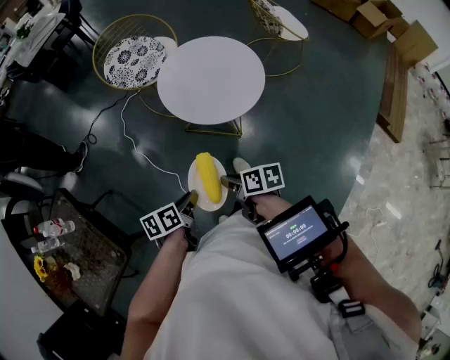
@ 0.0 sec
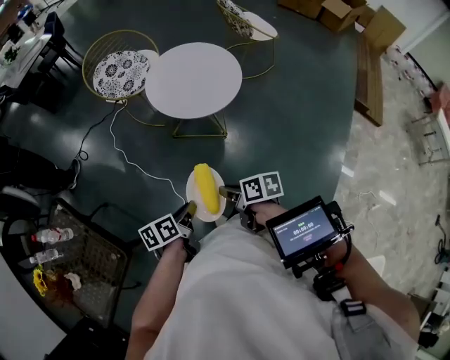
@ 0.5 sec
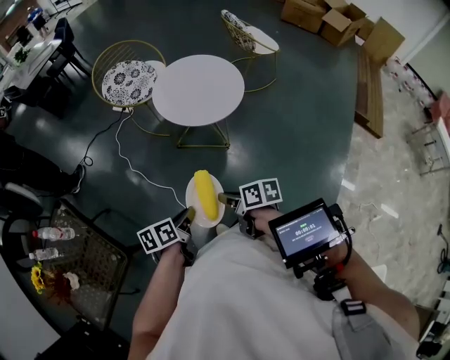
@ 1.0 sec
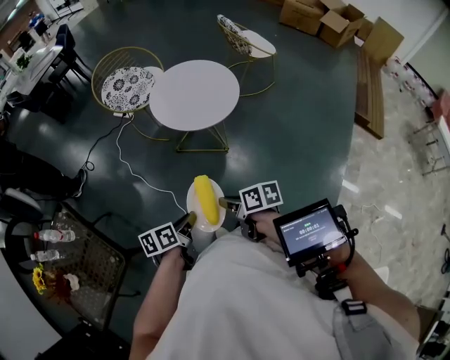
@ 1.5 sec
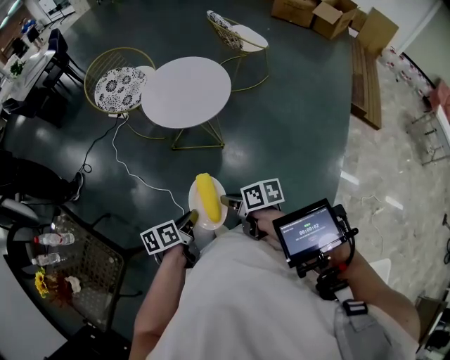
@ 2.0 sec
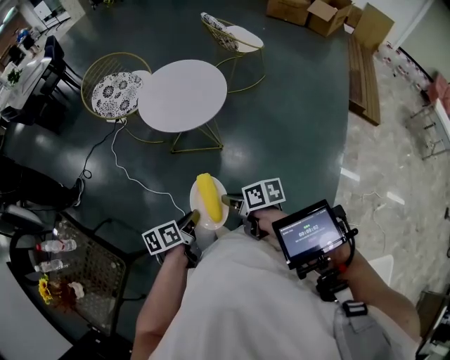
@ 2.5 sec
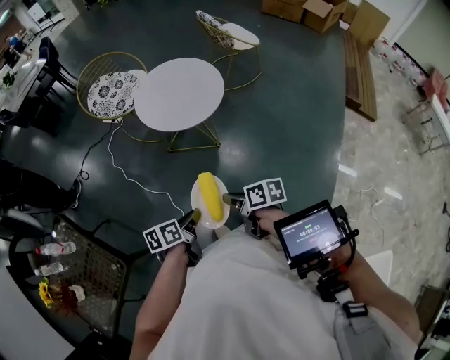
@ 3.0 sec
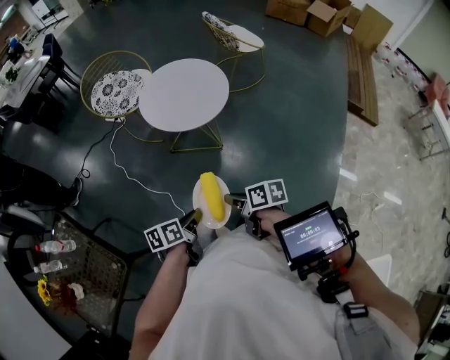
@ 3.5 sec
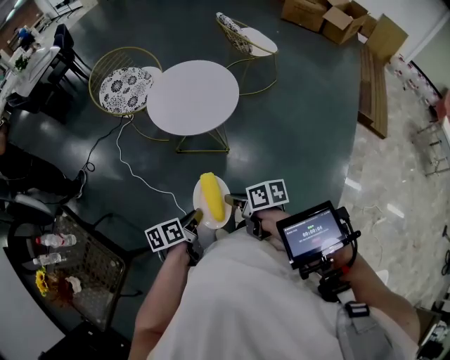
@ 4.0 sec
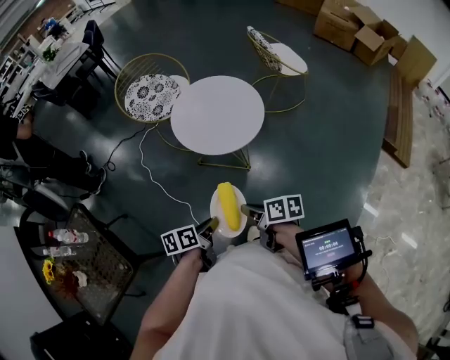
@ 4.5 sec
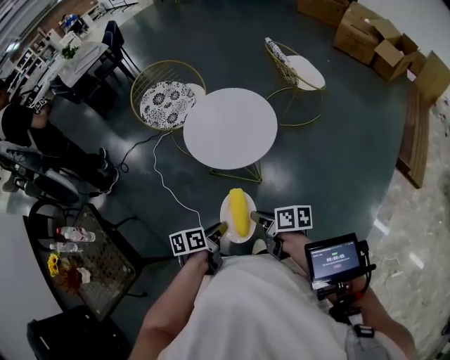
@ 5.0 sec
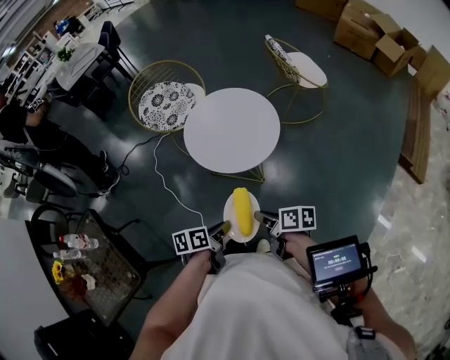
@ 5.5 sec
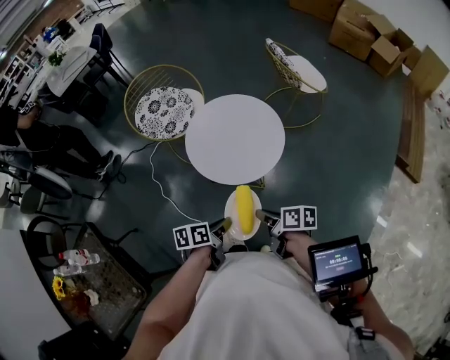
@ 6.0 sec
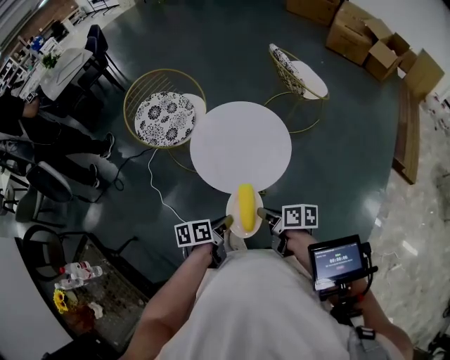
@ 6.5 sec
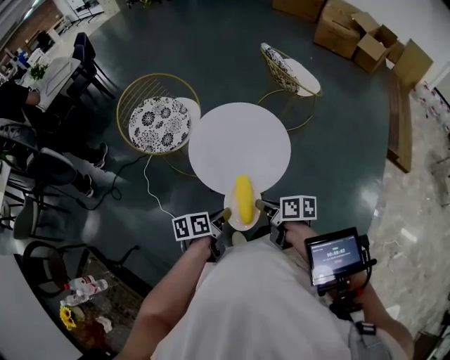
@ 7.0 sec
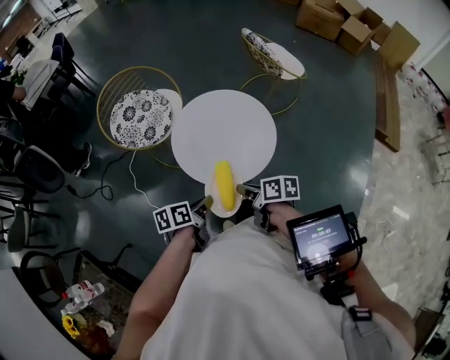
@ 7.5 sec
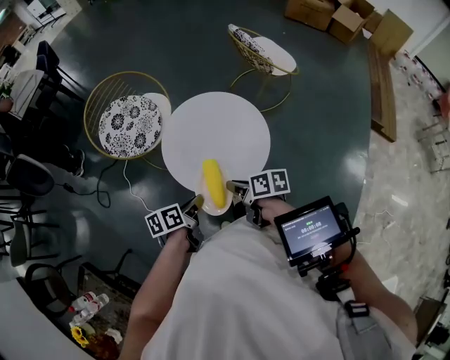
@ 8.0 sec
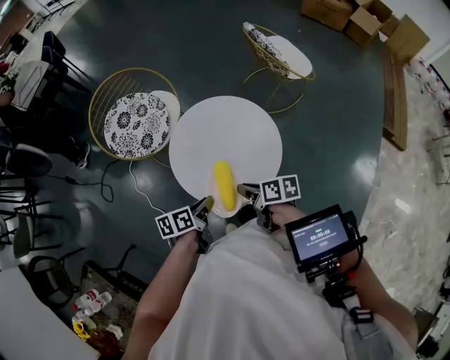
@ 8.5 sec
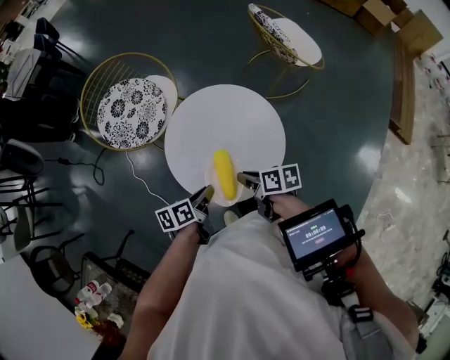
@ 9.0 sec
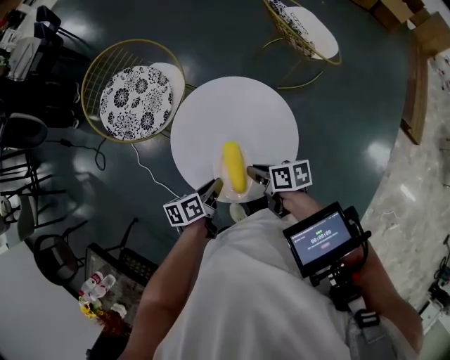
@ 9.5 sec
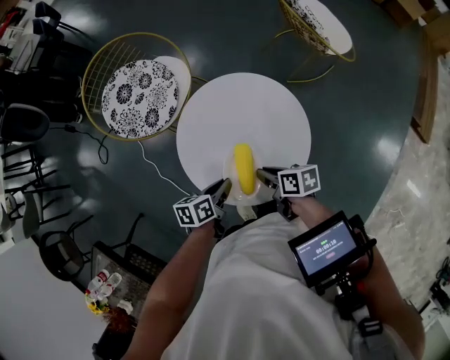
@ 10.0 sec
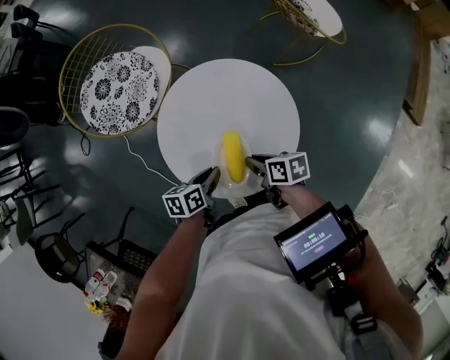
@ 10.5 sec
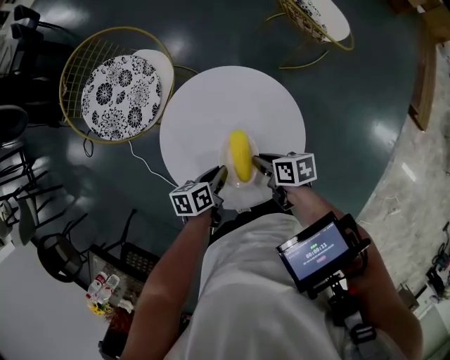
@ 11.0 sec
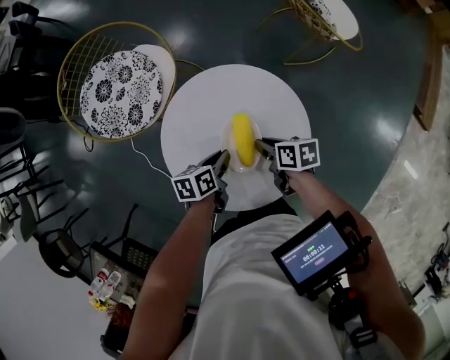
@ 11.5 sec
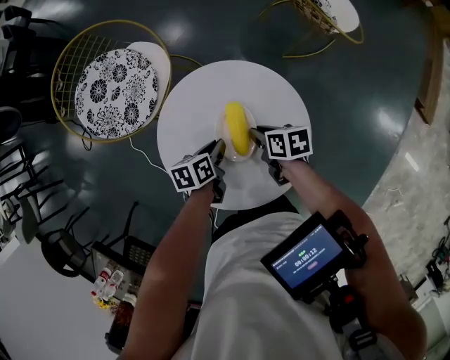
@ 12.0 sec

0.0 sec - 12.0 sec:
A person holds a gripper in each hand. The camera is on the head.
0.0 sec - 2.0 sec: The grippers both shift backward by about 15 cm.
2.0 sec - 4.0 sec: The right gripper moves roughly 5 cm.
4.0 sec - 6.0 sec: Both grippers move forward, approximately 20 cm.
6.0 sec - 8.0 sec: The grippers both shift forward and to the left by about 20 cm.
8.0 sec - 10.0 sec: The two grippers go some 15 cm forward and downward.
10.0 sec - 12.0 sec: The two grippers go approximately 15 cm forward and downward.

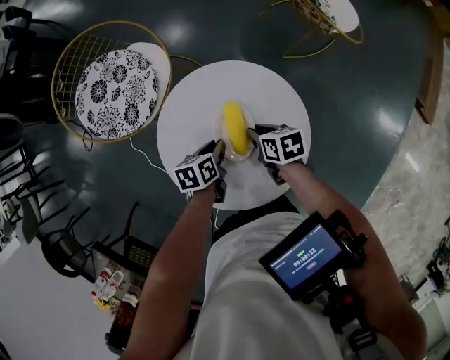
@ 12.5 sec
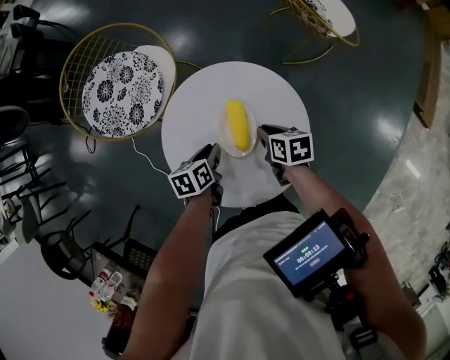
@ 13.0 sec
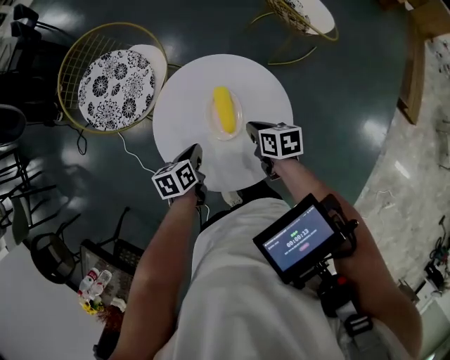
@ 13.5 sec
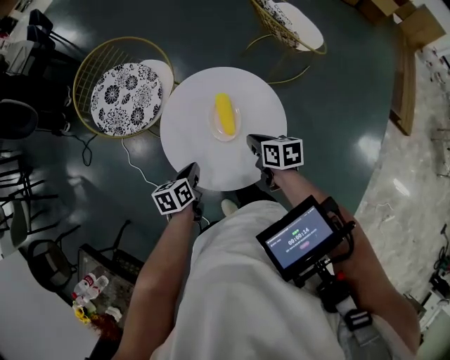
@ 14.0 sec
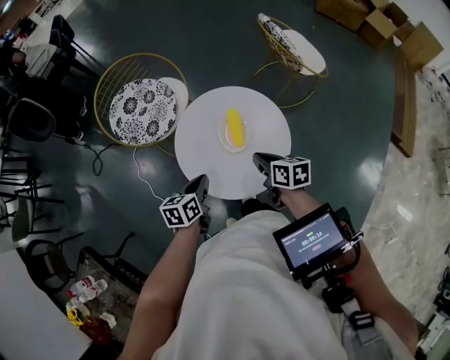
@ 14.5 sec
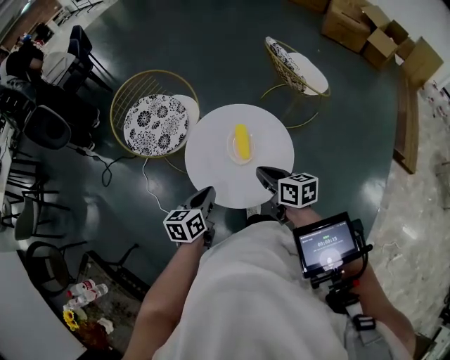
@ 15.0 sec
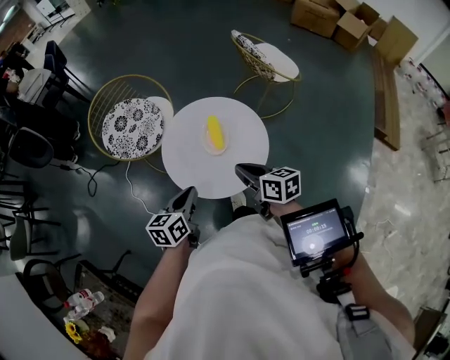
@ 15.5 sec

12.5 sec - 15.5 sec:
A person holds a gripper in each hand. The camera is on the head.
12.5 sec - 14.0 sec: The right gripper is displaced upward and backward by roughly 15 cm. Meanwhile the left gripper is displaced backward, upward and to the left by some 20 cm.
14.0 sec - 15.5 sec: Both grippers travel together upward and backward, roughly 15 cm. The right gripper changes its angle by some 20 degrees. Meanwhile the left gripper swivels roughly 20 degrees.

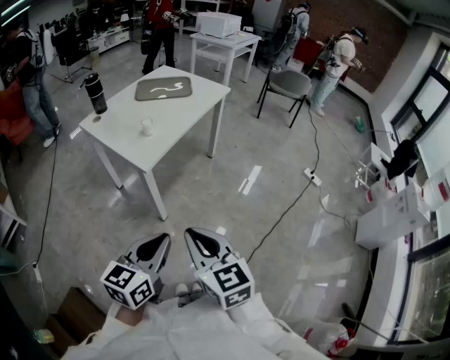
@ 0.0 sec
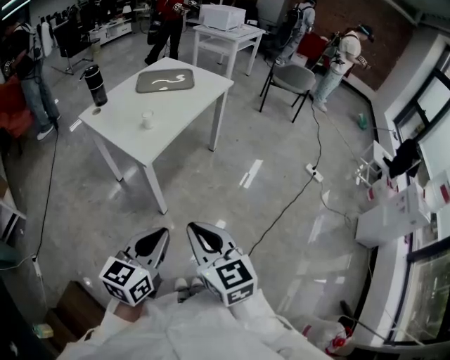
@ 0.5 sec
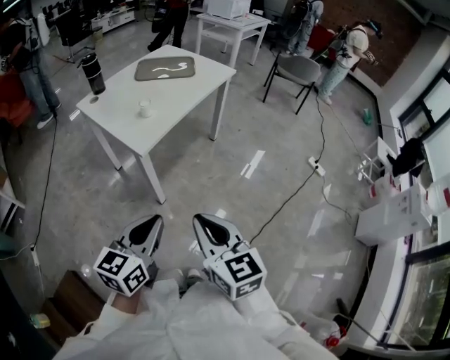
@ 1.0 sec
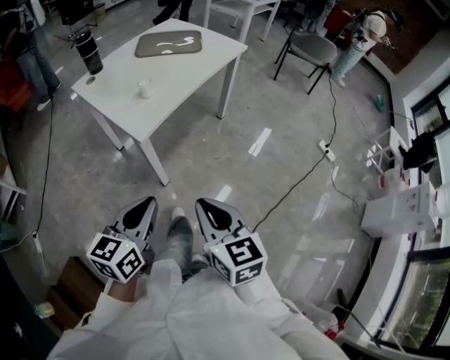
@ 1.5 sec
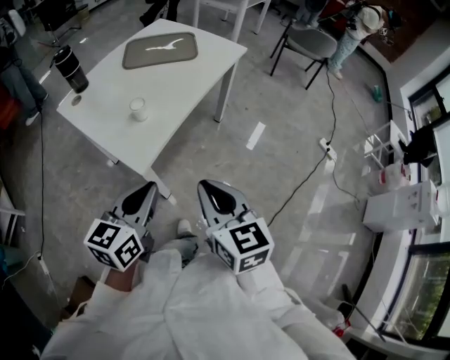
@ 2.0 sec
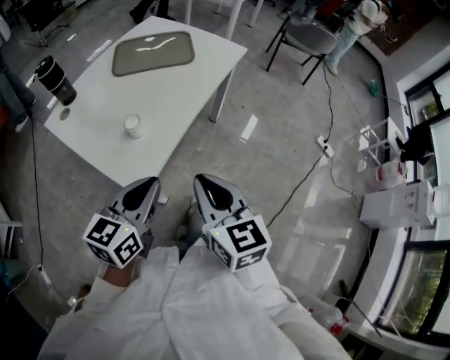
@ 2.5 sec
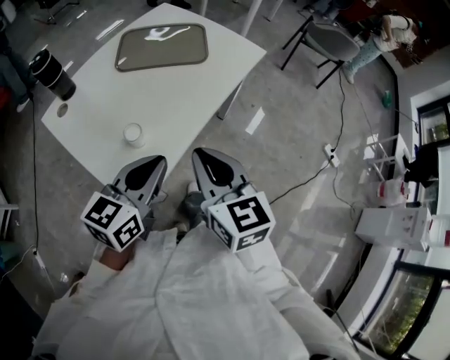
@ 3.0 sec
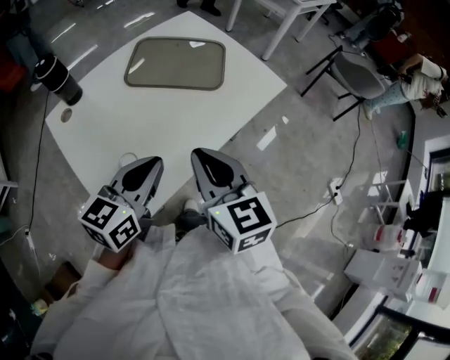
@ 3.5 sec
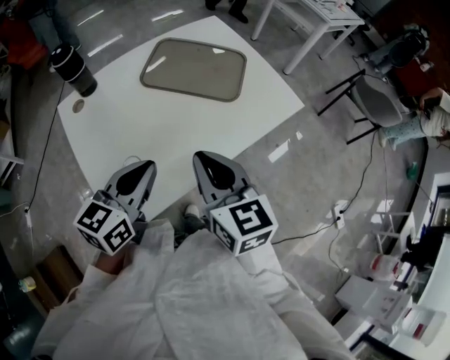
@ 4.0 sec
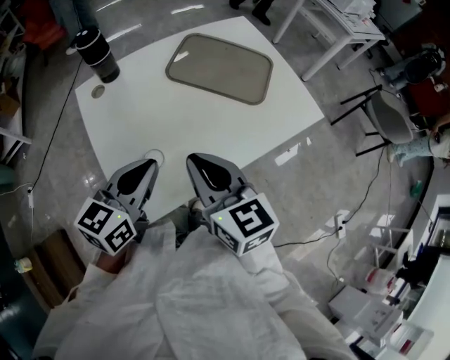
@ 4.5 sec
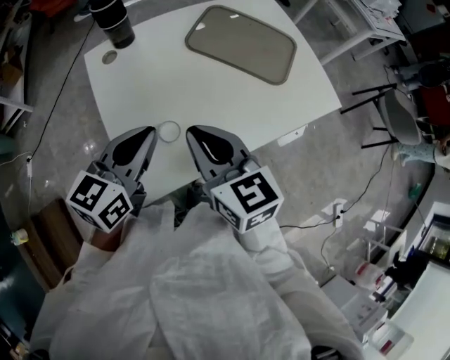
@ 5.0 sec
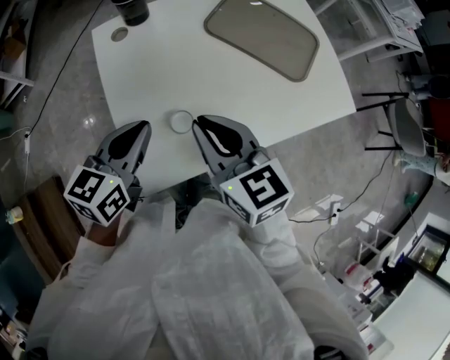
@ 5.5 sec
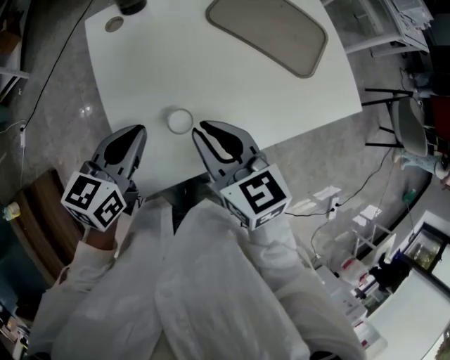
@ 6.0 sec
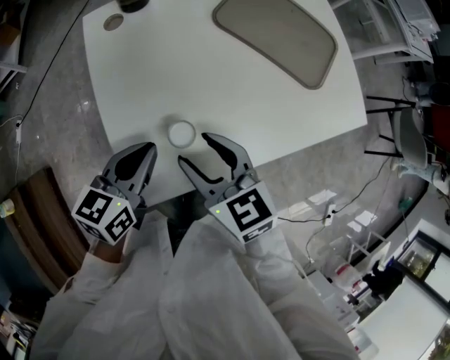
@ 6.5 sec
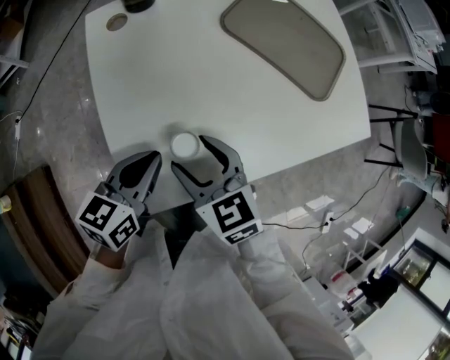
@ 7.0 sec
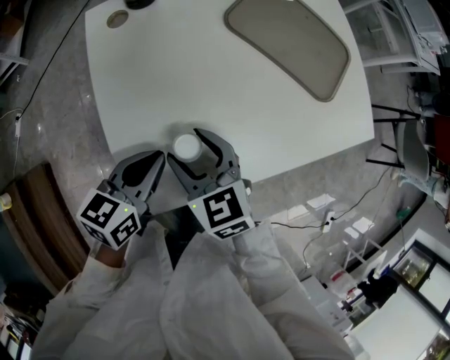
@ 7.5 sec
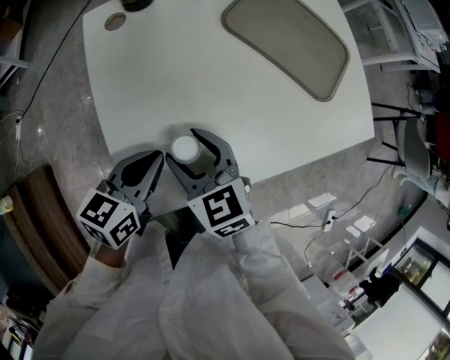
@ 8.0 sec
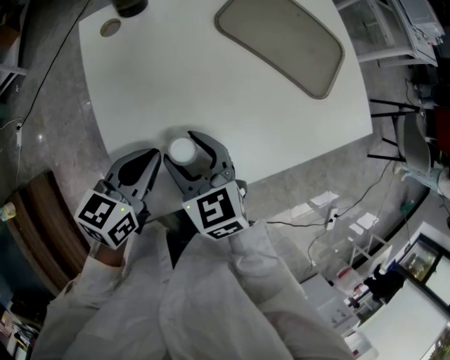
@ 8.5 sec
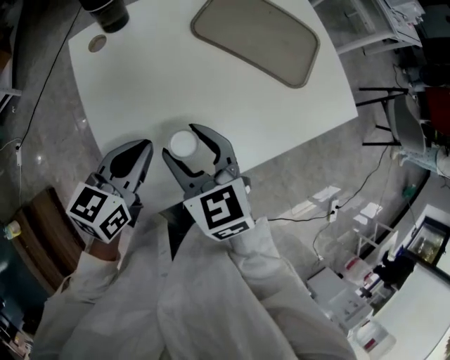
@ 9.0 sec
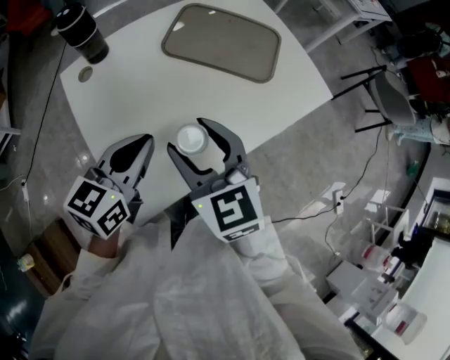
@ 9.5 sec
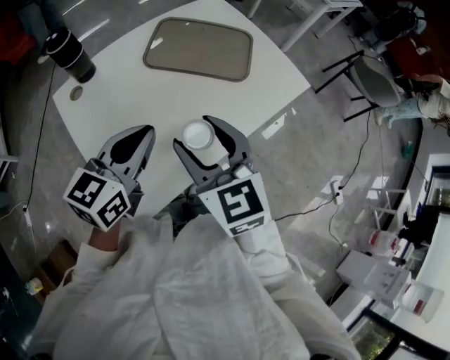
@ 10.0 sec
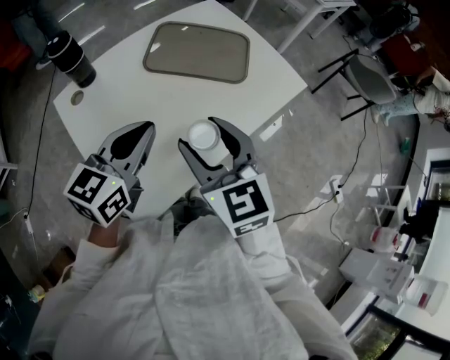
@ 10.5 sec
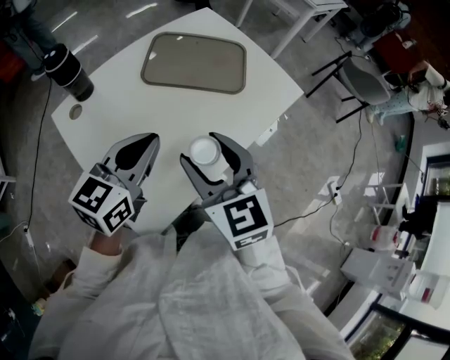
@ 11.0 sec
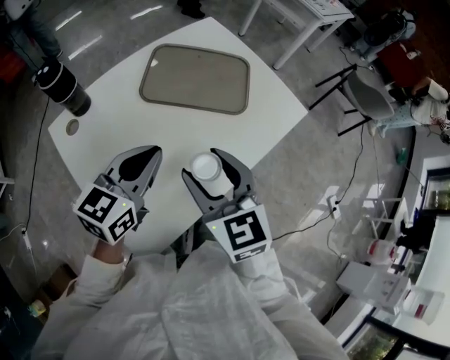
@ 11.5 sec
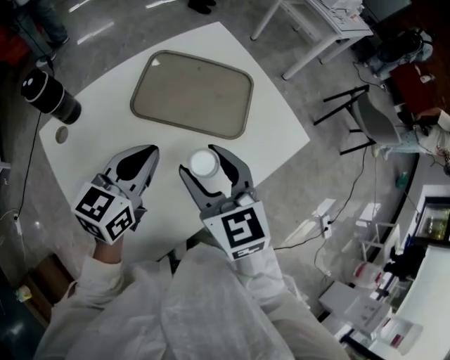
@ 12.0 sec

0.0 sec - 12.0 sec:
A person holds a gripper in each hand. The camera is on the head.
0.0 sec - 2.0 sec: Both grippers travel together forward, some 25 cm.
2.0 sec - 4.0 sec: Both grippers travel together forward, some 35 cm. The right gripper rotates approximately 20 degrees.
4.0 sec - 6.0 sec: Both grippers travel together to the left and downward, about 15 cm. The right gripper swivels about 30 degrees.
6.0 sec - 8.0 sec: Both grippers travel together downward, roughly 10 cm. The right gripper opens up.
8.0 sec - 10.0 sec: The grippers both shift upward and to the right by roughly 20 cm. The left gripper swivels about 30 degrees, while the right gripper turns by some 30 degrees.
10.0 sec - 12.0 sec: The grippers both shift forward by roughly 15 cm.
